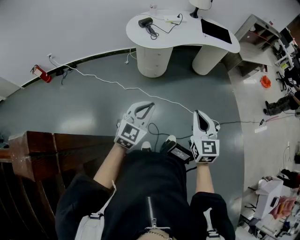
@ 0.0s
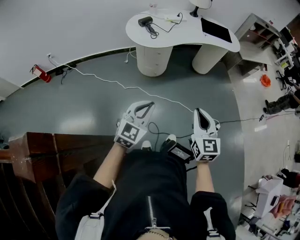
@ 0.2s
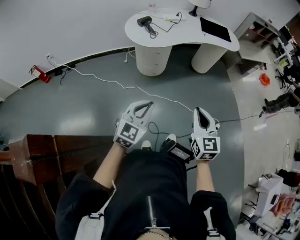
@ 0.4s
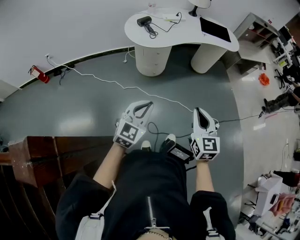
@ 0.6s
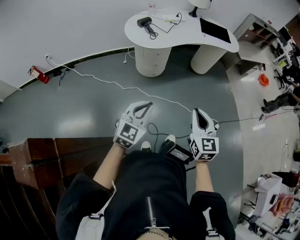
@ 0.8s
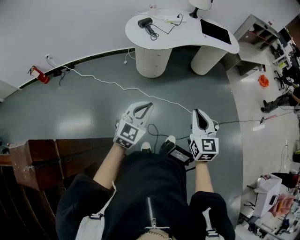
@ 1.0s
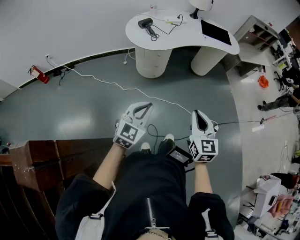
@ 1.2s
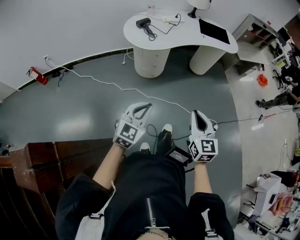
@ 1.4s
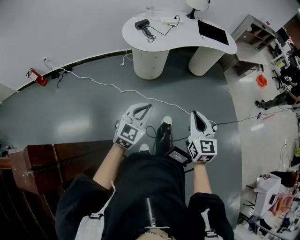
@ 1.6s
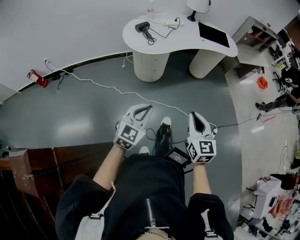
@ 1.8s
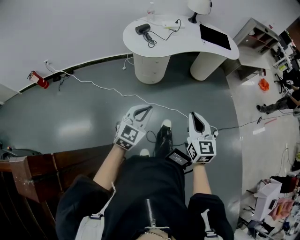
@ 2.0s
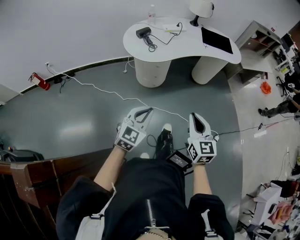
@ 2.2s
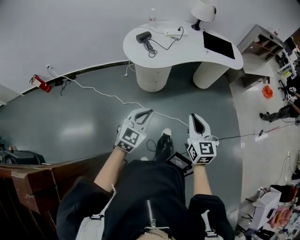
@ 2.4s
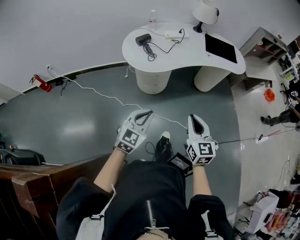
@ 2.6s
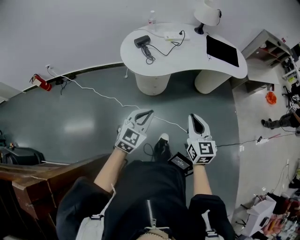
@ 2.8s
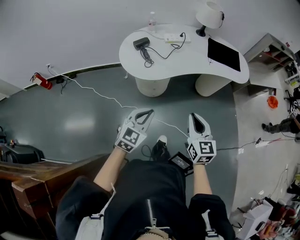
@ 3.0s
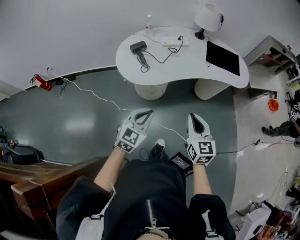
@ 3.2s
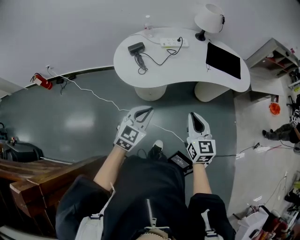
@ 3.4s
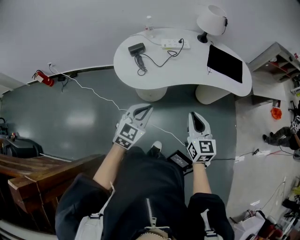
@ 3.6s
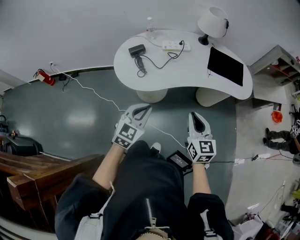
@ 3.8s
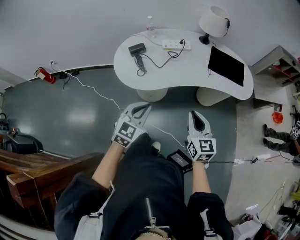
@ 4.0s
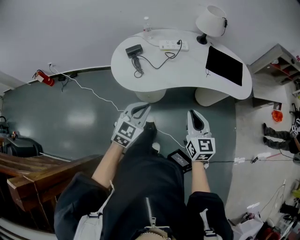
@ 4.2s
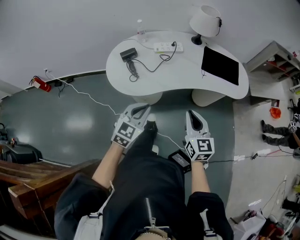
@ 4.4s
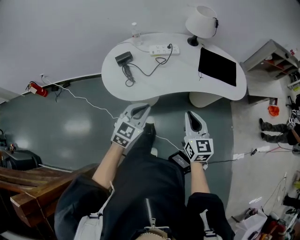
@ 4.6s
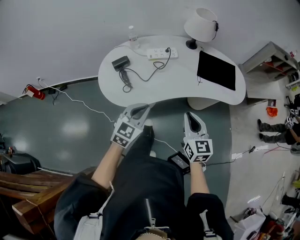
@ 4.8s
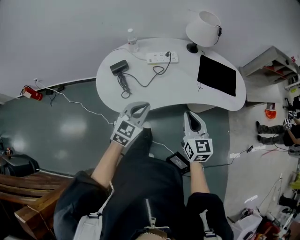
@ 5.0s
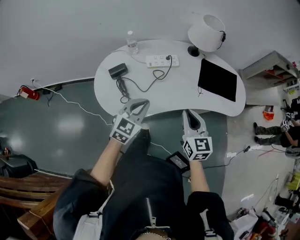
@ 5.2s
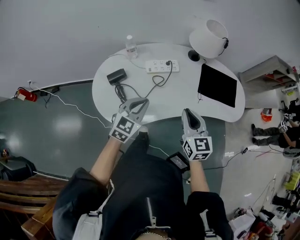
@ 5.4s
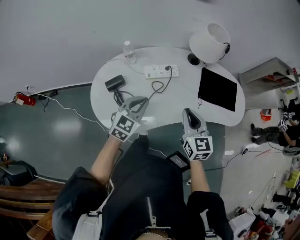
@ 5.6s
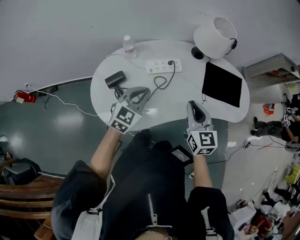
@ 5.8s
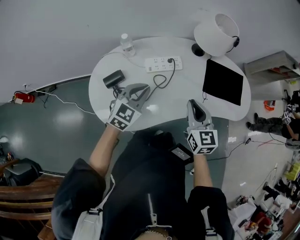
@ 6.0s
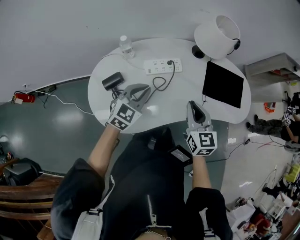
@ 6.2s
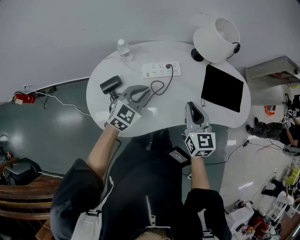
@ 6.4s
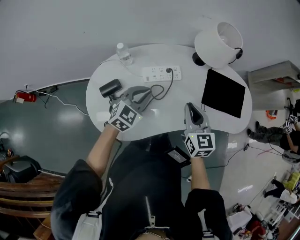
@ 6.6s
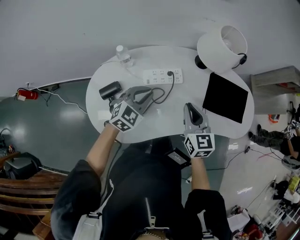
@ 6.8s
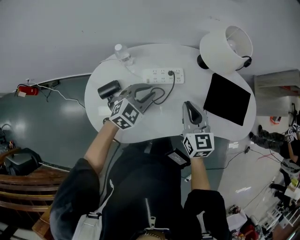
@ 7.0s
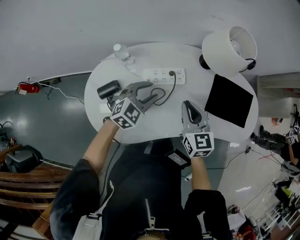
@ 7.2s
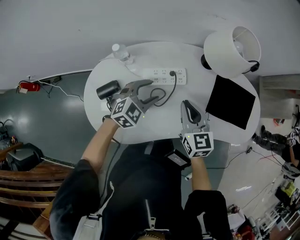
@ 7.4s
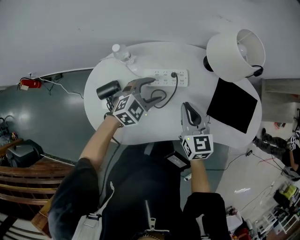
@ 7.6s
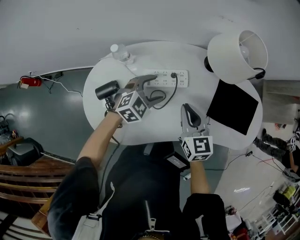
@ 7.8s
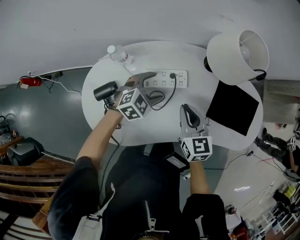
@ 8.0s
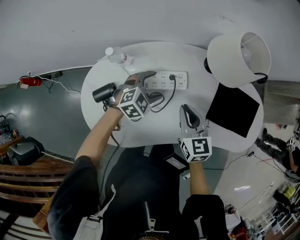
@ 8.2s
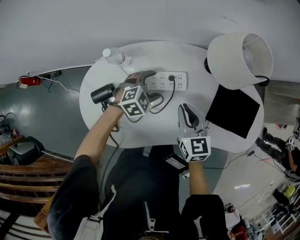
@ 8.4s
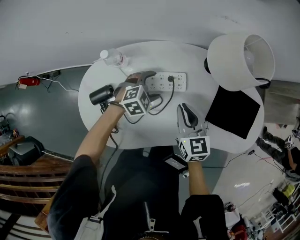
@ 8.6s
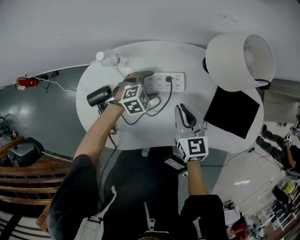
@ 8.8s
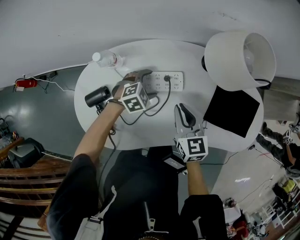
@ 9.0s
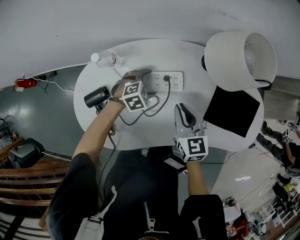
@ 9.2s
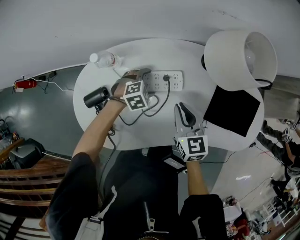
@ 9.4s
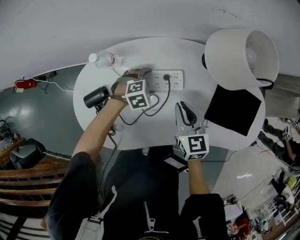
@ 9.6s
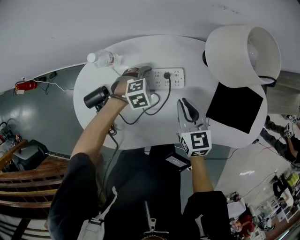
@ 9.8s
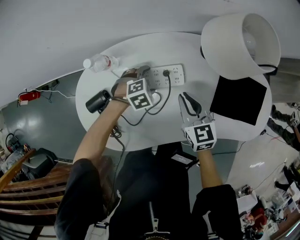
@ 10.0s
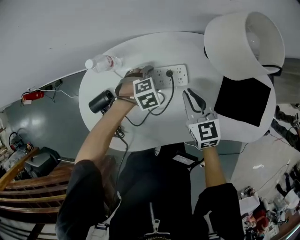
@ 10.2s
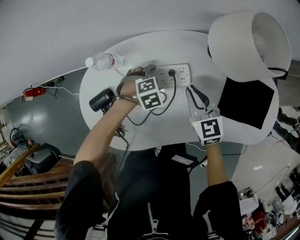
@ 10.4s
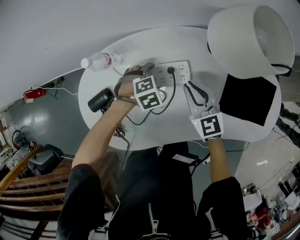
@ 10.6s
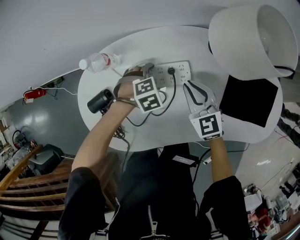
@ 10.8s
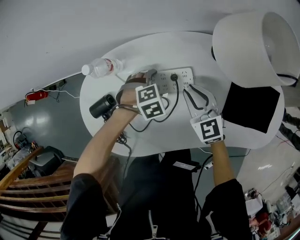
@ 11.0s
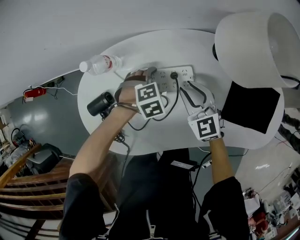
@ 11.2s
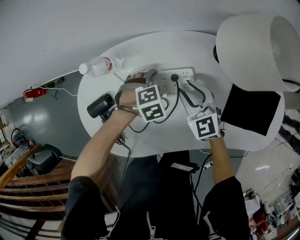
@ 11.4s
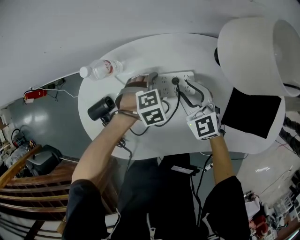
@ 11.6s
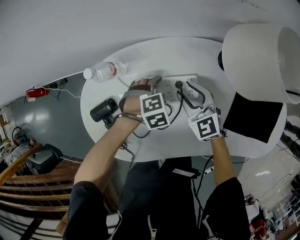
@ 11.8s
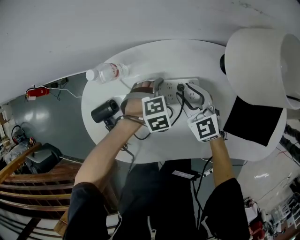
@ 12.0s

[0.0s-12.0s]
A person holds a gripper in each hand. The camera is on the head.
0.0s to 1.6s: The grippers move only a little.
1.6s to 3.0s: Both grippers travel together forward, approximately 25 cm.
3.0s to 4.4s: Both grippers travel together forward and to the right, about 20 cm.
4.4s to 6.0s: Both grippers travel together forward, about 30 cm.
6.0s to 7.6s: The two grippers go some 15 cm forward and downward. The left gripper opens.
7.6s to 9.0s: The left gripper moves downward and forward, approximately 15 cm; the right gripper changes place by roughly 5 cm.
9.0s to 10.4s: The right gripper moves roughly 5 cm.
10.4s to 12.0s: The right gripper changes place by about 10 cm, and opens its fingers.

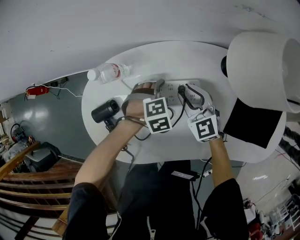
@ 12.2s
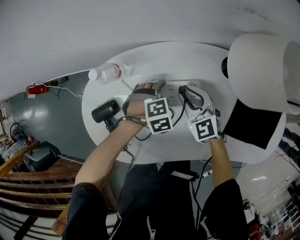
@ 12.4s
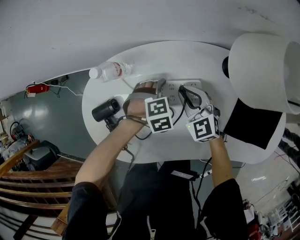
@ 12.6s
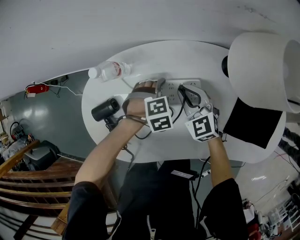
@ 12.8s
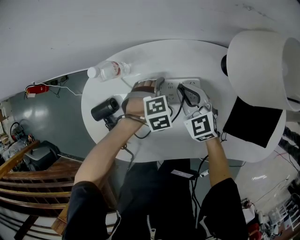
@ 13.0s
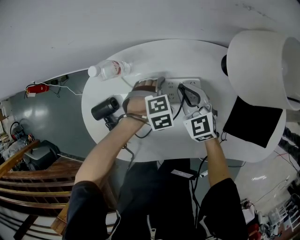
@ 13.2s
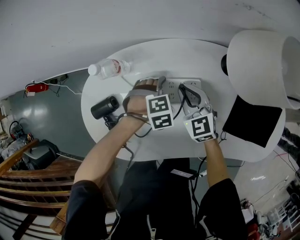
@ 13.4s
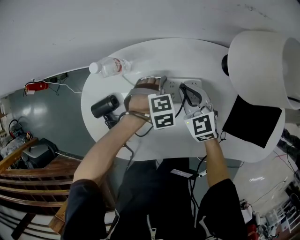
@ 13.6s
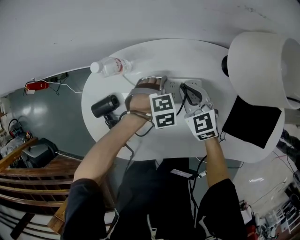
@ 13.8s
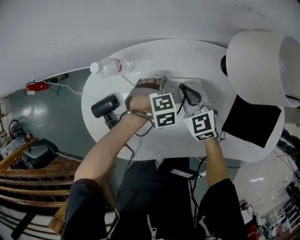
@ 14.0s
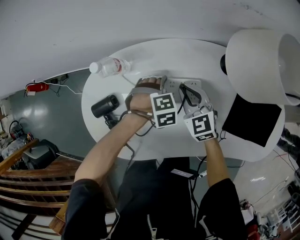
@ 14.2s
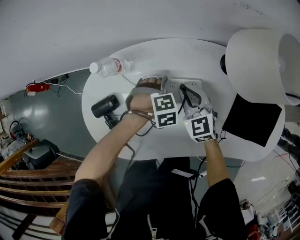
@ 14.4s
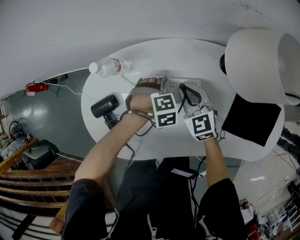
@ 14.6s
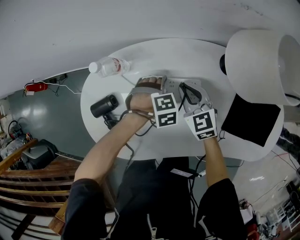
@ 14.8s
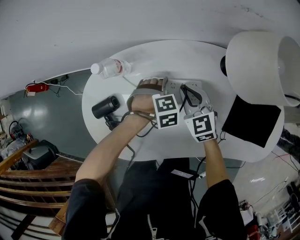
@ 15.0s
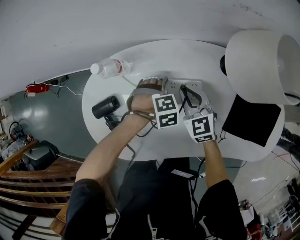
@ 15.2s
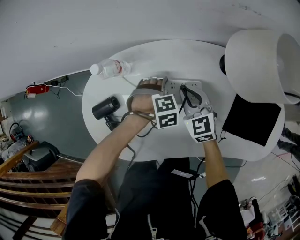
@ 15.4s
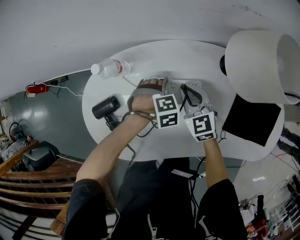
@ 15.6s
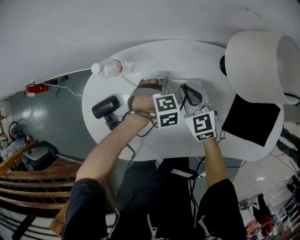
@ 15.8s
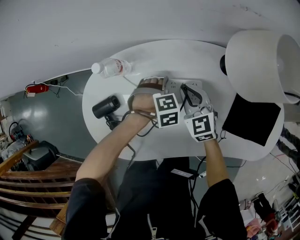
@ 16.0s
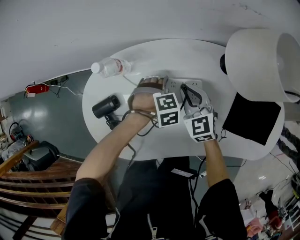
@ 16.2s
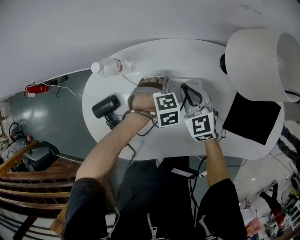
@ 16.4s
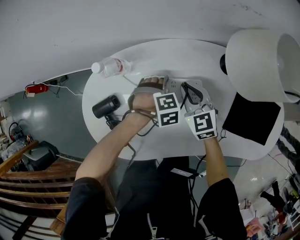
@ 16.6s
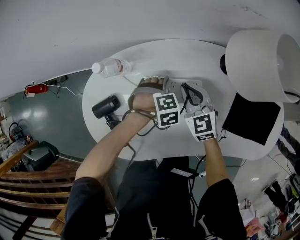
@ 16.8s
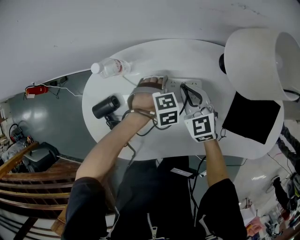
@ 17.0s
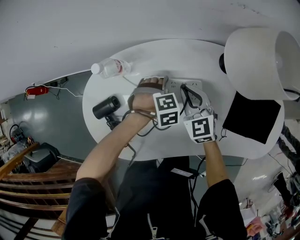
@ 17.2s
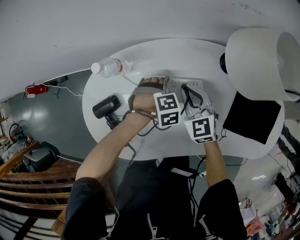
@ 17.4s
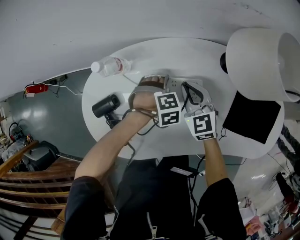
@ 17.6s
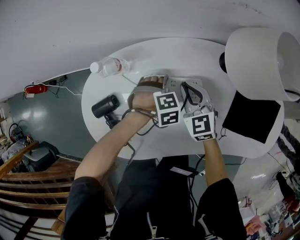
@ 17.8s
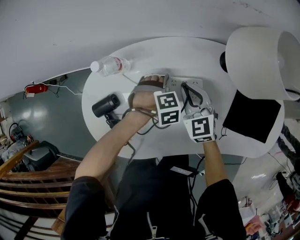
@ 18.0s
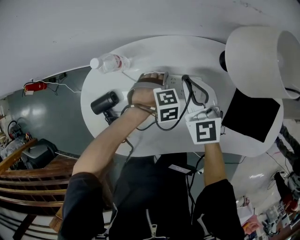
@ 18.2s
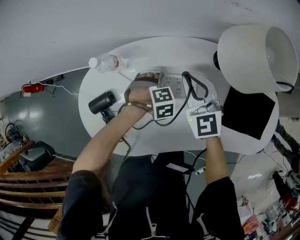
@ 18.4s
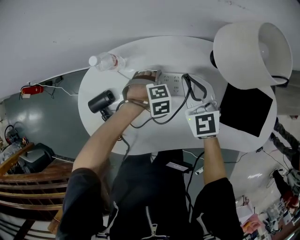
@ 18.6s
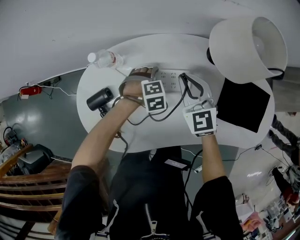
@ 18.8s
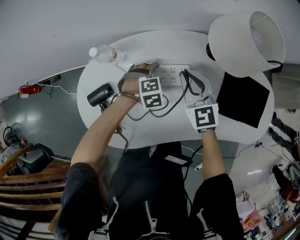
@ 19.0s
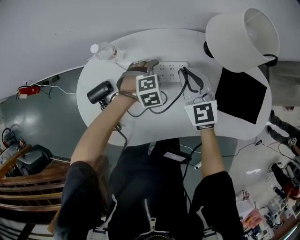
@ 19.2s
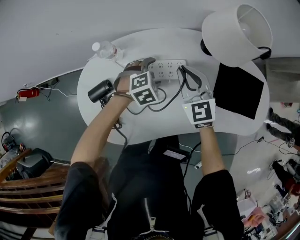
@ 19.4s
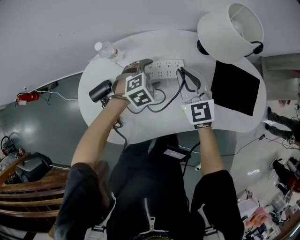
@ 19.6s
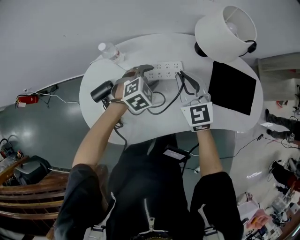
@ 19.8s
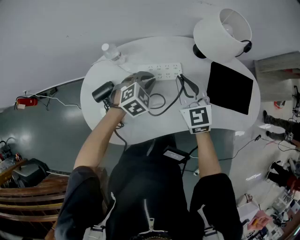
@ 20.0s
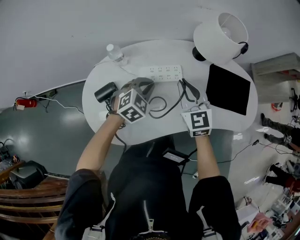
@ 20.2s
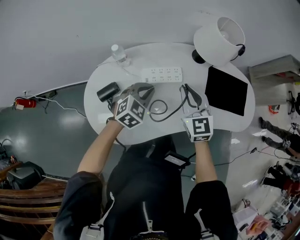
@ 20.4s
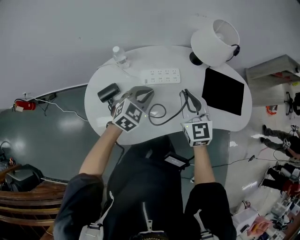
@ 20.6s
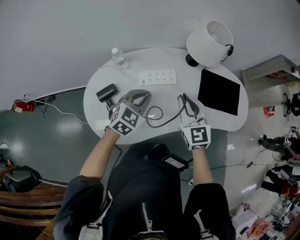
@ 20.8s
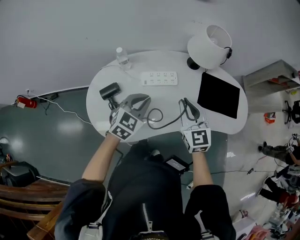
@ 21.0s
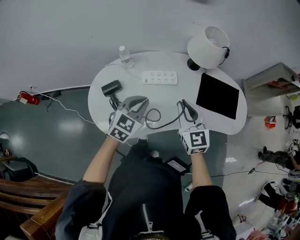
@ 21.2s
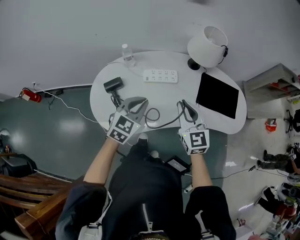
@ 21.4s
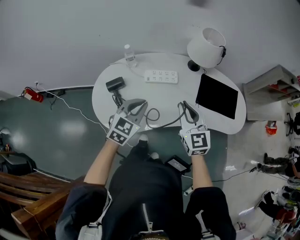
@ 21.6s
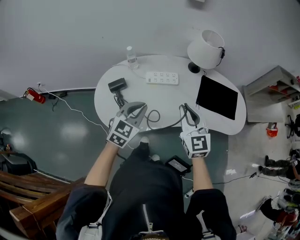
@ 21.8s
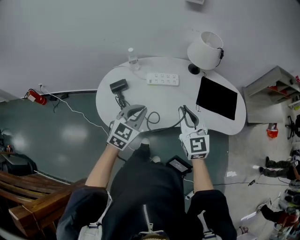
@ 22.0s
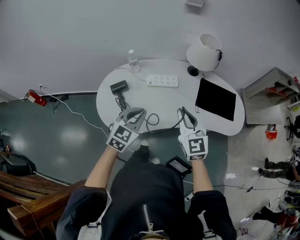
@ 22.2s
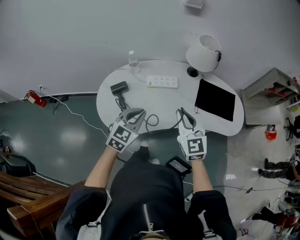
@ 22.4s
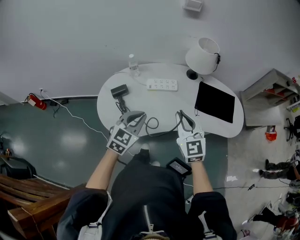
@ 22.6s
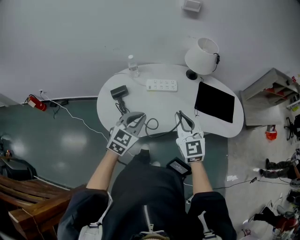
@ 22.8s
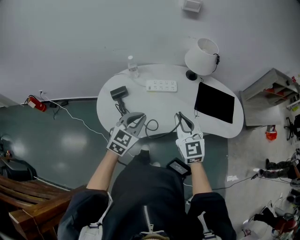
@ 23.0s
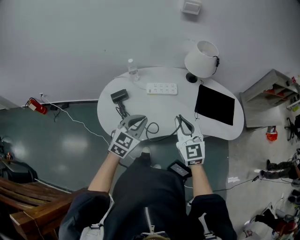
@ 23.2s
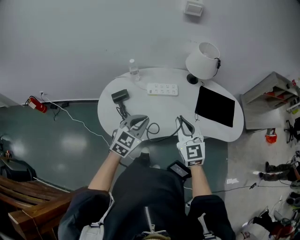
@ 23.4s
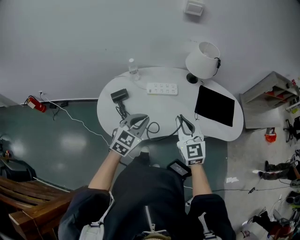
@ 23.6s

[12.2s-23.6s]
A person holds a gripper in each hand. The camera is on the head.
12.2s to 13.6s: The right gripper closes its fingers.
13.6s to 16.4s: Neither gripper changes place.
16.4s to 17.8s: Neither gripper changes place.
17.8s to 19.4s: Both grippers travel together upward, about 10 cm. The left gripper swivels some 20 degrees.
19.4s to 20.8s: The left gripper travels upward and backward by some 20 cm, rotates about 30 degrees, and closes; the right gripper shifts roughly 15 cm backward and upward.
20.8s to 22.2s: The right gripper moves backward and upward, about 15 cm. The left gripper shifts some 15 cm backward.
22.2s to 23.6s: The grippers make only small movements.

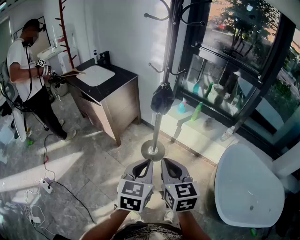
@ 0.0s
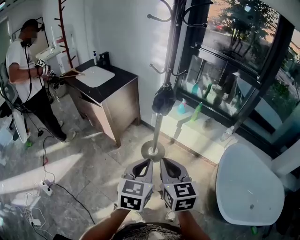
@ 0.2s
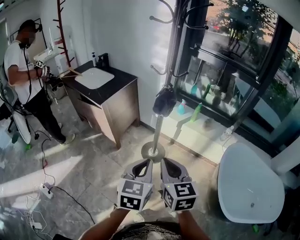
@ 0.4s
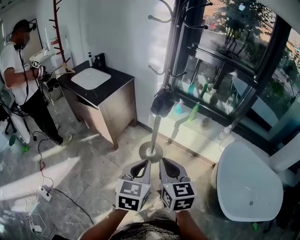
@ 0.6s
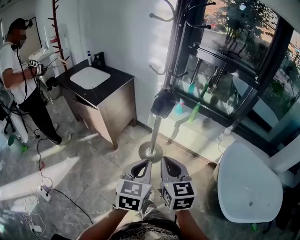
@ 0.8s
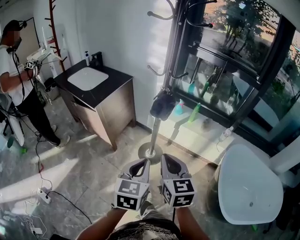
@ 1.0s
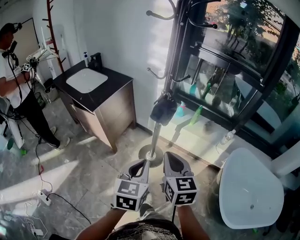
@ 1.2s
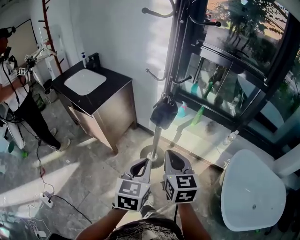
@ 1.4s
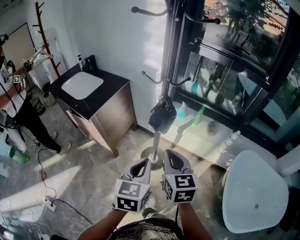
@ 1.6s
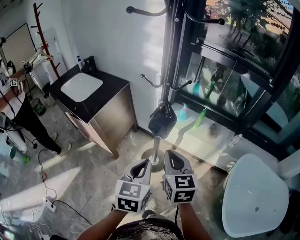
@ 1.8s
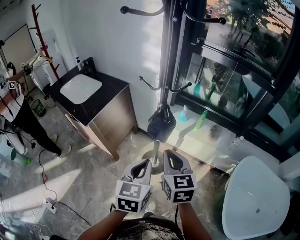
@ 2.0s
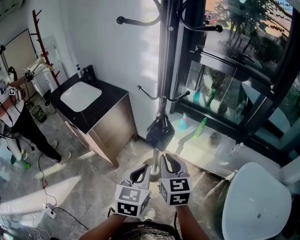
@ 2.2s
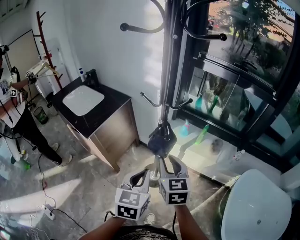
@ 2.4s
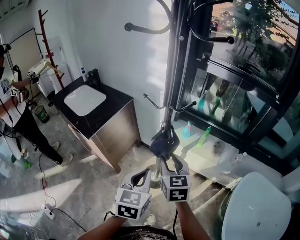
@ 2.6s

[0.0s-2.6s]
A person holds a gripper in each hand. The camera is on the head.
0.0s to 1.2s: Both grippers move forward, approximately 10 cm.
1.2s to 2.6s: Both grippers travel together forward, roughly 20 cm. The right gripper opens its fingers.
